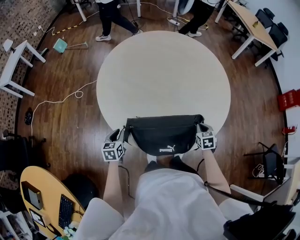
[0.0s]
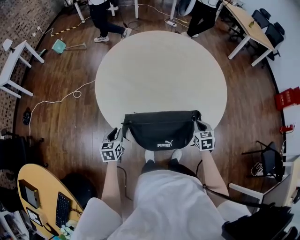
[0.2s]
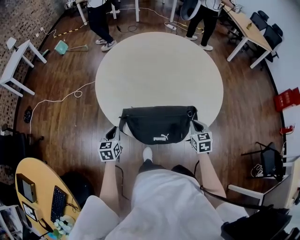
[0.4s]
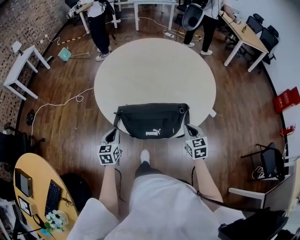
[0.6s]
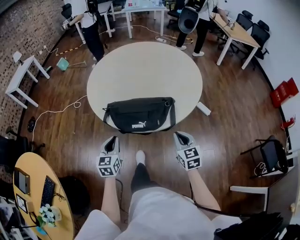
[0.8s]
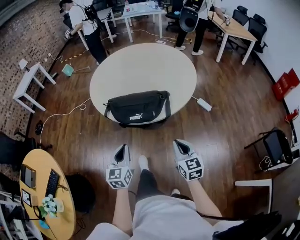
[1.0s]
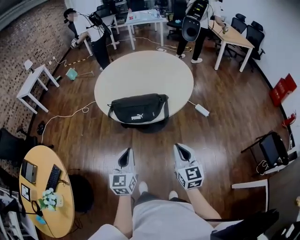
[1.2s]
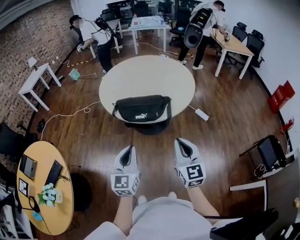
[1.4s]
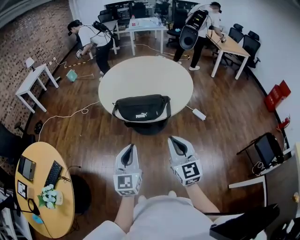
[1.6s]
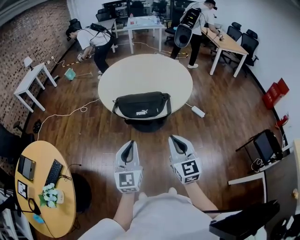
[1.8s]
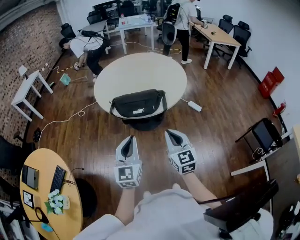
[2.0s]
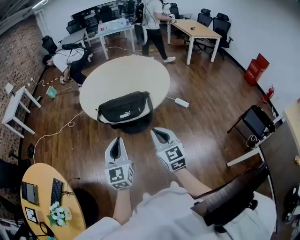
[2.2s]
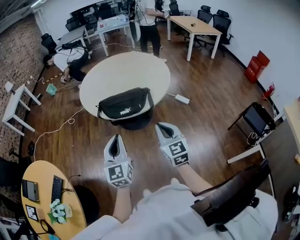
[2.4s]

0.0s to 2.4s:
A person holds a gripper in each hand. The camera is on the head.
0.0s to 1.2s: The pair of grippers is taken backward, roughly 50 cm. Both grippers move upward, roughly 25 cm. The right gripper tilts its fingers about 40 degrees upward. Meanwhile the left gripper changes its angle by roughly 30 degrees.
1.2s to 2.4s: The left gripper moves upward, roughly 10 cm; the right gripper heads to the left and upward, covering some 10 cm.

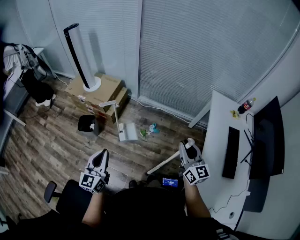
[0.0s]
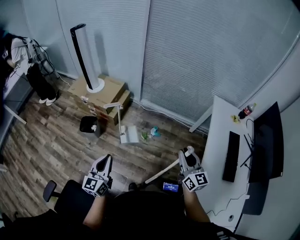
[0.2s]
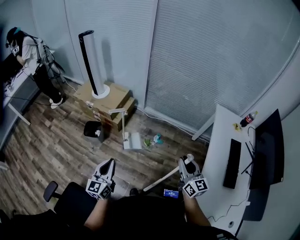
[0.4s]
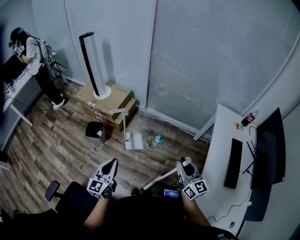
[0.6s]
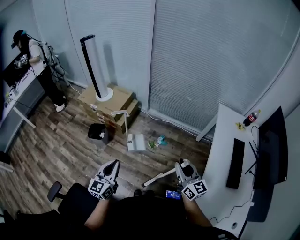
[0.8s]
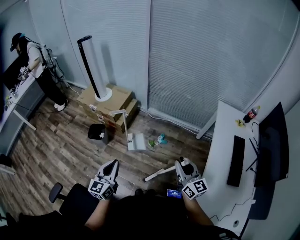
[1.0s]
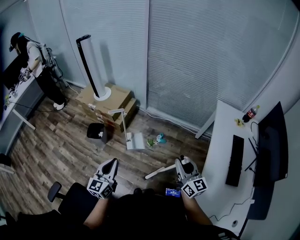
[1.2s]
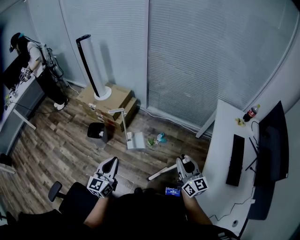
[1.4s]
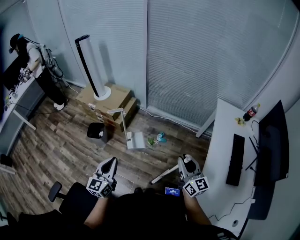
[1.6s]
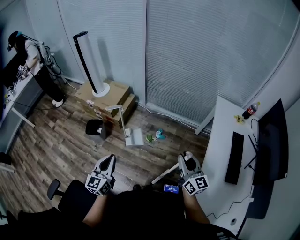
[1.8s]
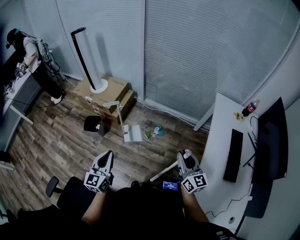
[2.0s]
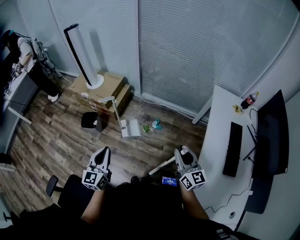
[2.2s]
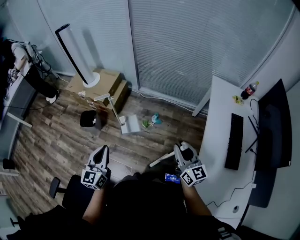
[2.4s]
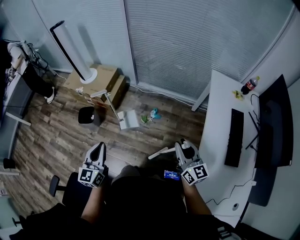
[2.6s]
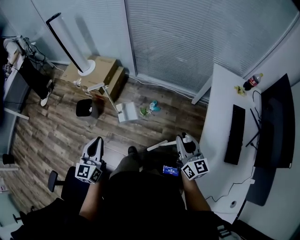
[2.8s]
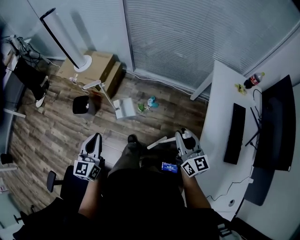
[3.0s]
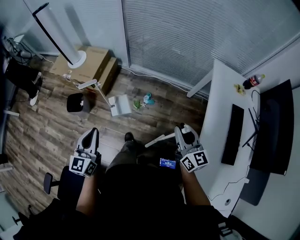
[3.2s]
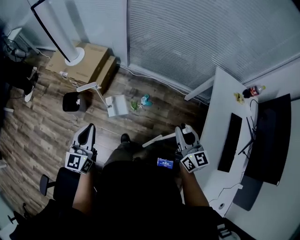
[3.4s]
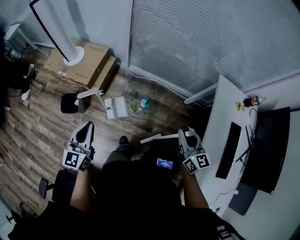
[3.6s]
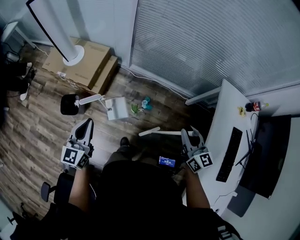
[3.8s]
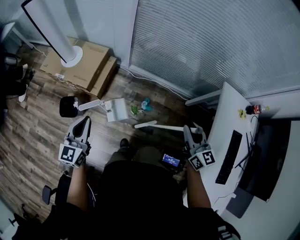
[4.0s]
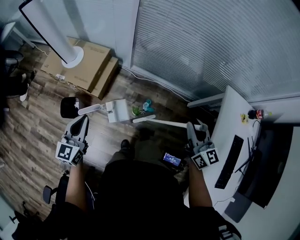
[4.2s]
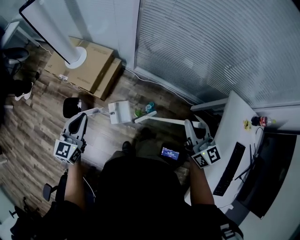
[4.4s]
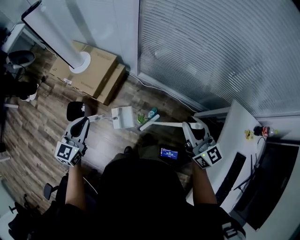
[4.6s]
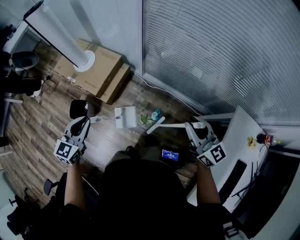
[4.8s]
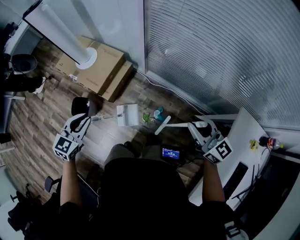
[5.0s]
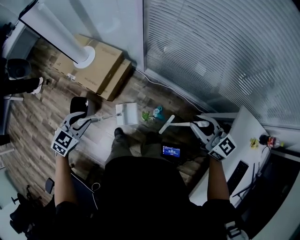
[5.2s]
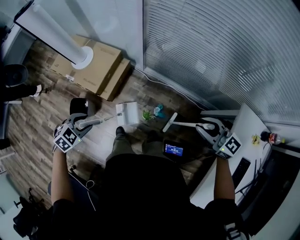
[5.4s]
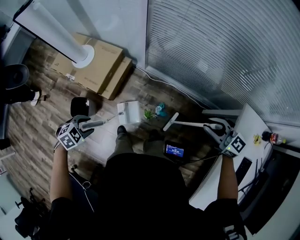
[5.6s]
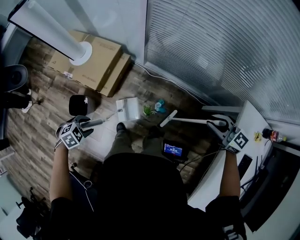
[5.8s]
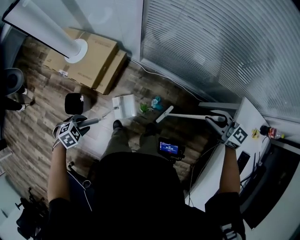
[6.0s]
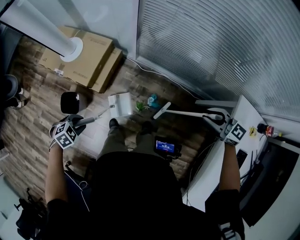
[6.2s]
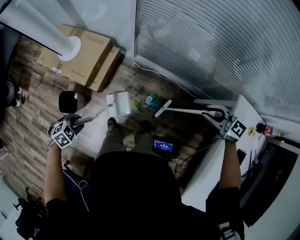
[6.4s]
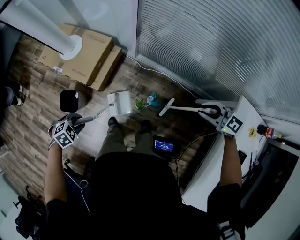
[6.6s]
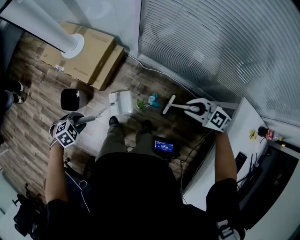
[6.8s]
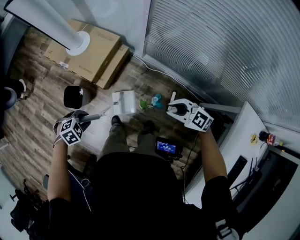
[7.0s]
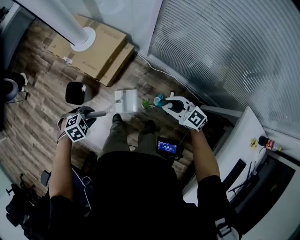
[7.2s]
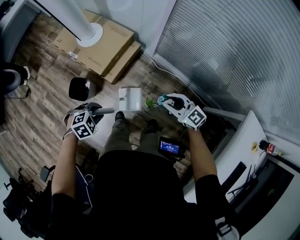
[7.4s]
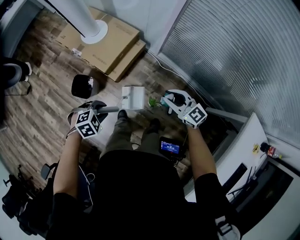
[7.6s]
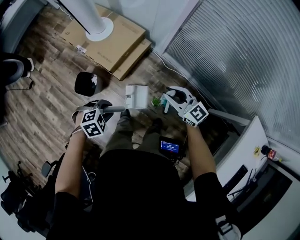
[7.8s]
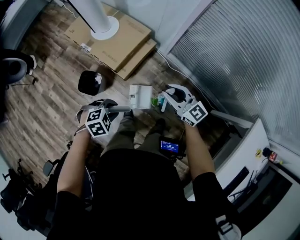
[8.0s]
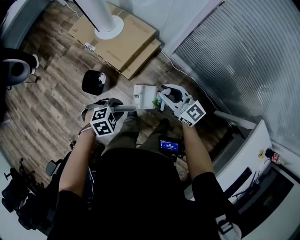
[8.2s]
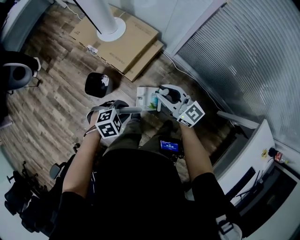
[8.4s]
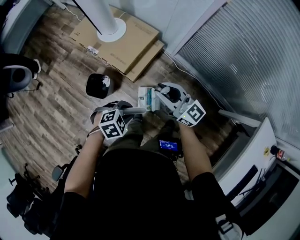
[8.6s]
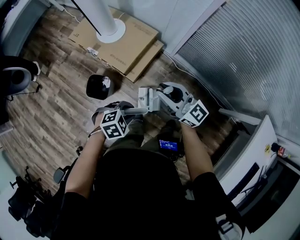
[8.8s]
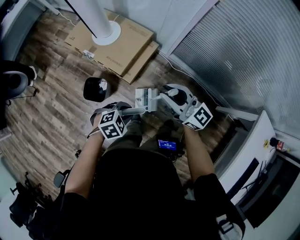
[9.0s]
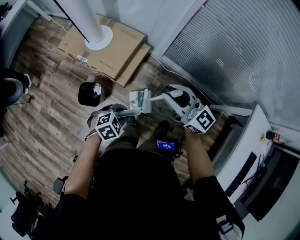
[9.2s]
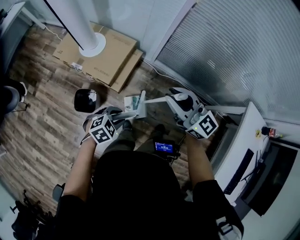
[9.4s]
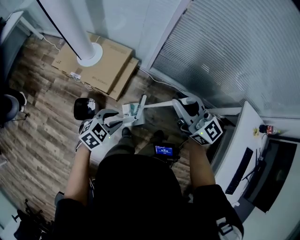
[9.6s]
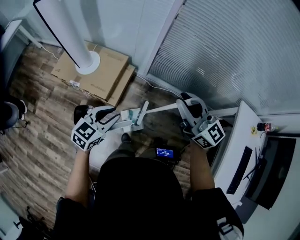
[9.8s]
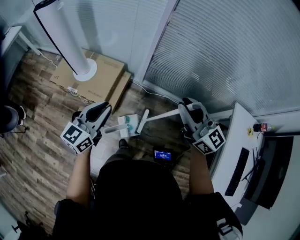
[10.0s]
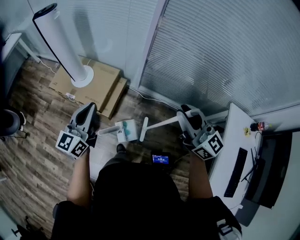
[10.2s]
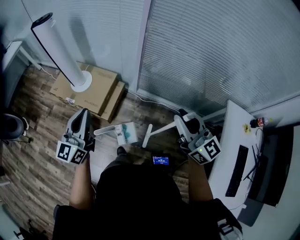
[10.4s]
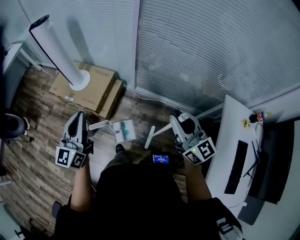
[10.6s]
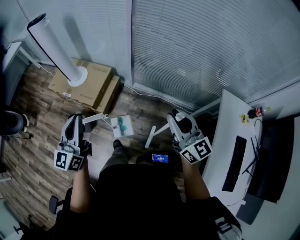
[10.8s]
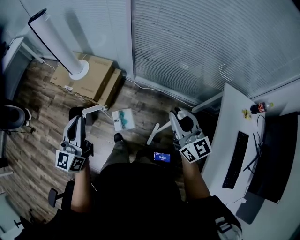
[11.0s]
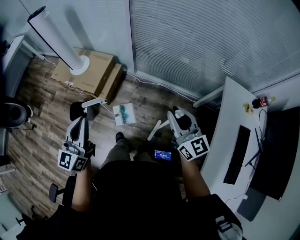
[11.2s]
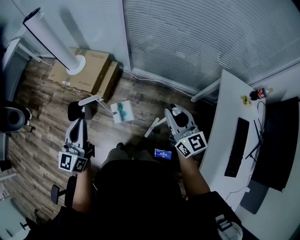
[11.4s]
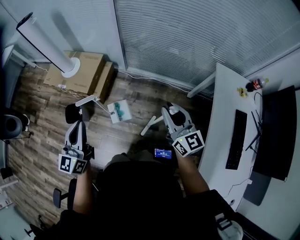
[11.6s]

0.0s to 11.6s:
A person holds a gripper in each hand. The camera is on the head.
0.0s to 1.4s: The right gripper moves backward, about 5 cm.
1.4s to 2.8s: The right gripper heads to the right, covering some 5 cm.
2.8s to 4.4s: The grippers both shift forward by some 35 cm.
4.4s to 5.8s: The right gripper shifts by roughly 15 cm, and turns by about 40 degrees, while the left gripper travels downward by approximately 20 cm, tilts its fingers approximately 60 degrees downward, and opens up.
5.8s to 7.2s: The right gripper shifts by about 25 cm.
7.2s to 8.8s: The right gripper moves roughly 25 cm, and changes its angle by approximately 30 degrees.
8.8s to 10.2s: The two grippers go roughly 25 cm upward. The right gripper changes its angle by about 30 degrees. Meanwhile the left gripper tips its fingers upward by approximately 70 degrees, and closes its fingers.
10.2s to 11.6s: The left gripper shifts some 25 cm backward and to the right. The right gripper goes about 25 cm backward, to the right and downward.

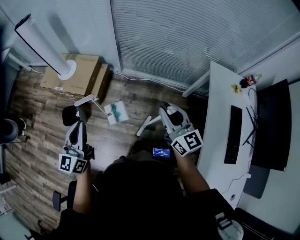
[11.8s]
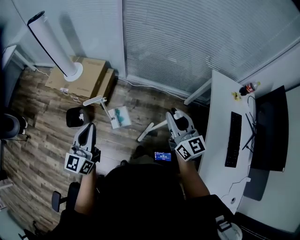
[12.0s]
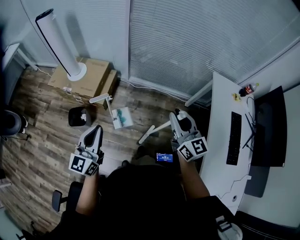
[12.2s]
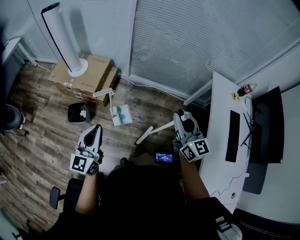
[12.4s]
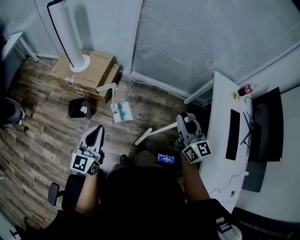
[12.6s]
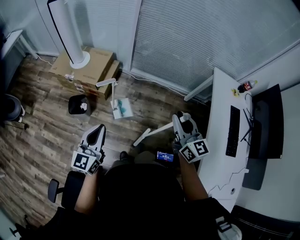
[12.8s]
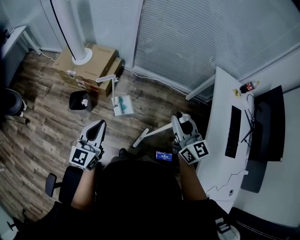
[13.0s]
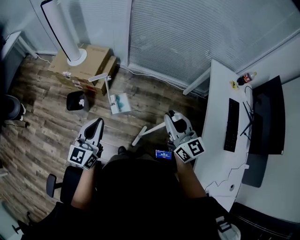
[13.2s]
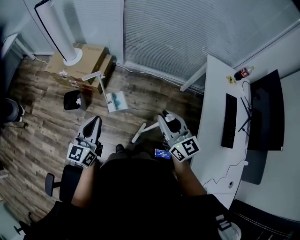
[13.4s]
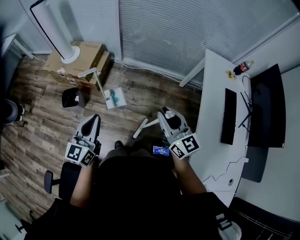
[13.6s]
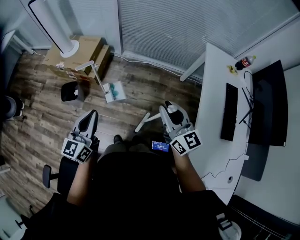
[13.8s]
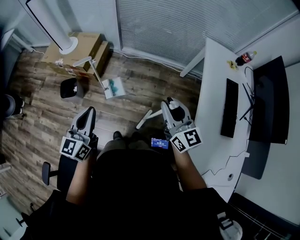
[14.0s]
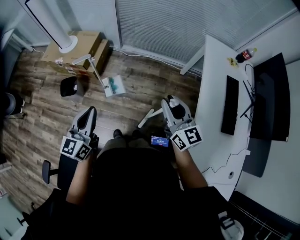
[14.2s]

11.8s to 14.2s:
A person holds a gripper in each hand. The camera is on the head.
11.8s to 13.0s: The right gripper goes about 15 cm backward and to the left. Meanwhile the left gripper travels backward by approximately 15 cm.
13.0s to 14.2s: The left gripper goes some 10 cm to the right, while the right gripper is displaced to the right and backward by some 10 cm.

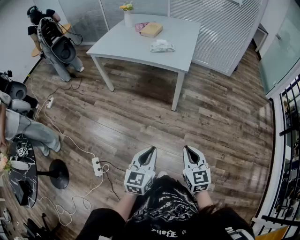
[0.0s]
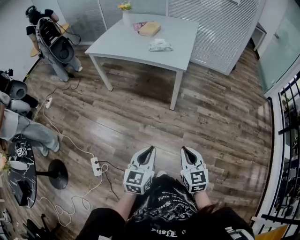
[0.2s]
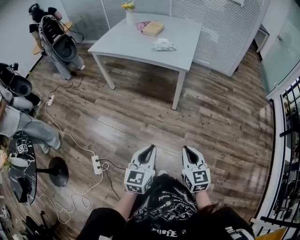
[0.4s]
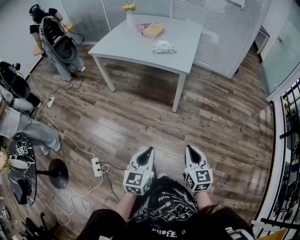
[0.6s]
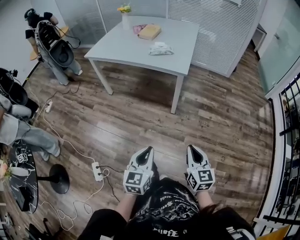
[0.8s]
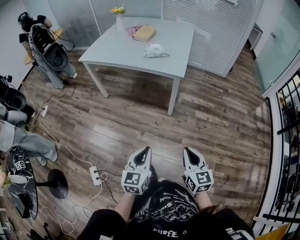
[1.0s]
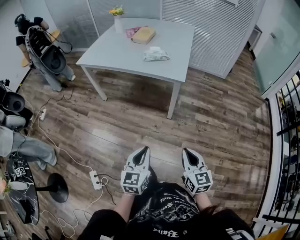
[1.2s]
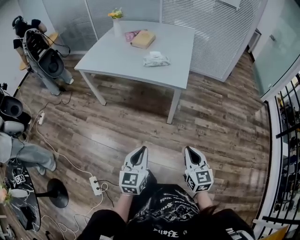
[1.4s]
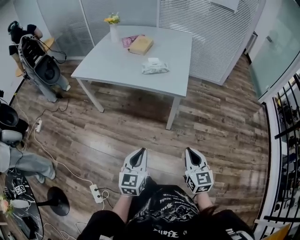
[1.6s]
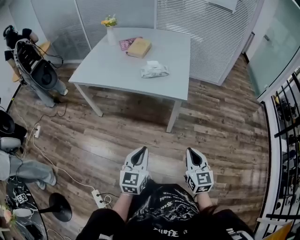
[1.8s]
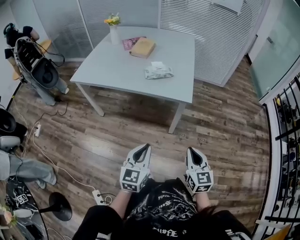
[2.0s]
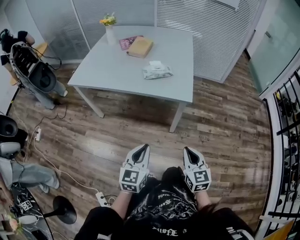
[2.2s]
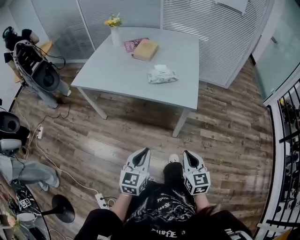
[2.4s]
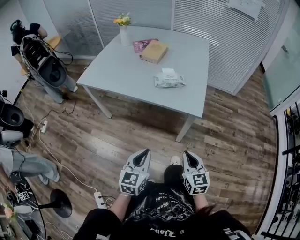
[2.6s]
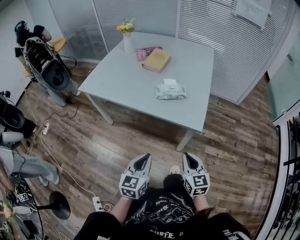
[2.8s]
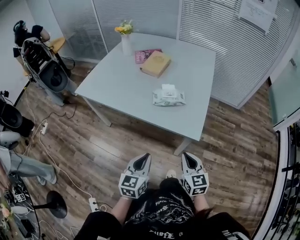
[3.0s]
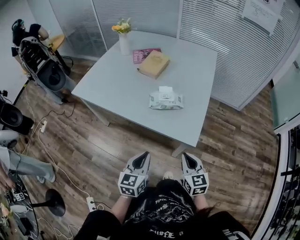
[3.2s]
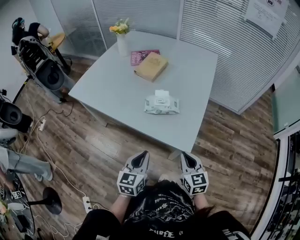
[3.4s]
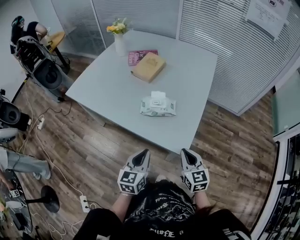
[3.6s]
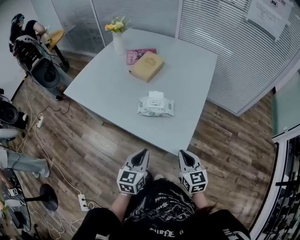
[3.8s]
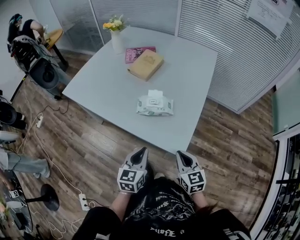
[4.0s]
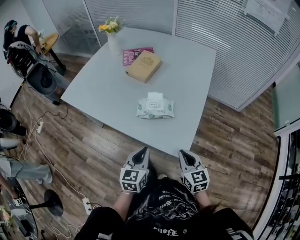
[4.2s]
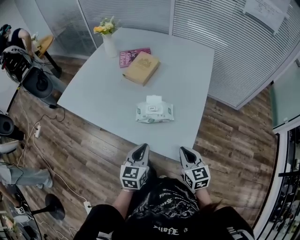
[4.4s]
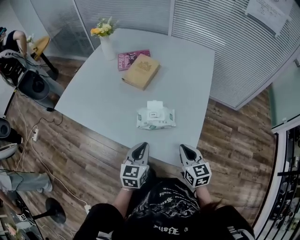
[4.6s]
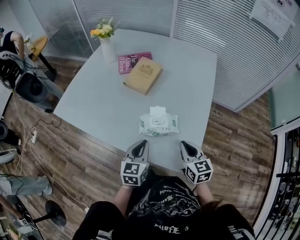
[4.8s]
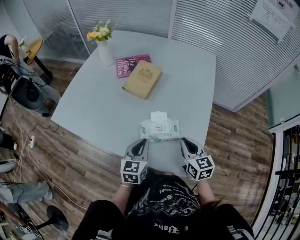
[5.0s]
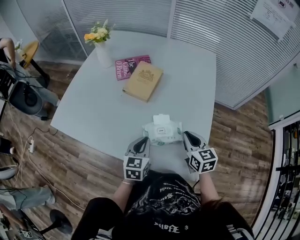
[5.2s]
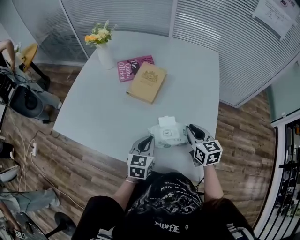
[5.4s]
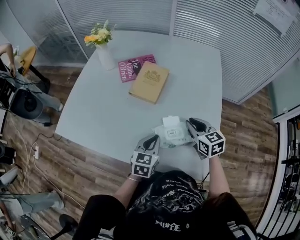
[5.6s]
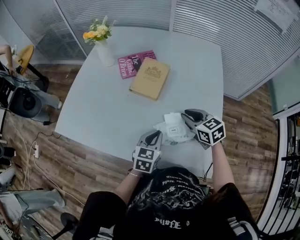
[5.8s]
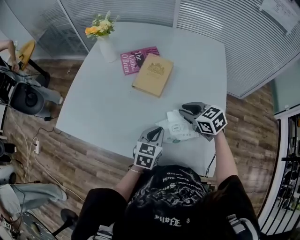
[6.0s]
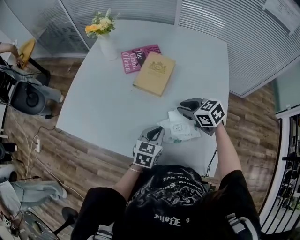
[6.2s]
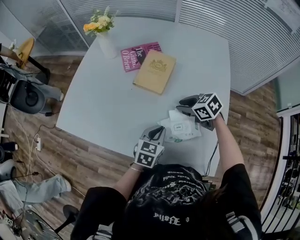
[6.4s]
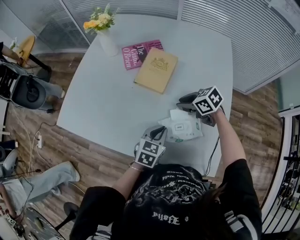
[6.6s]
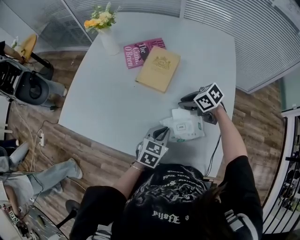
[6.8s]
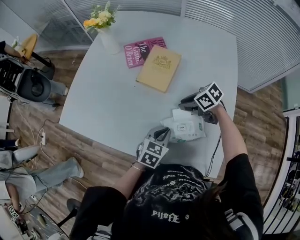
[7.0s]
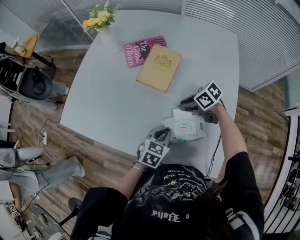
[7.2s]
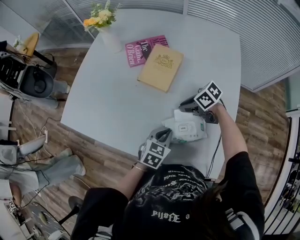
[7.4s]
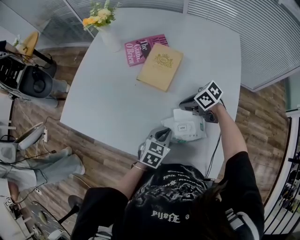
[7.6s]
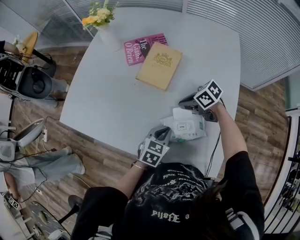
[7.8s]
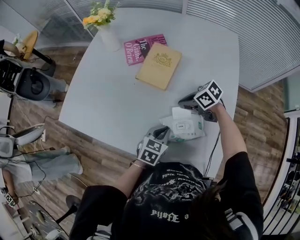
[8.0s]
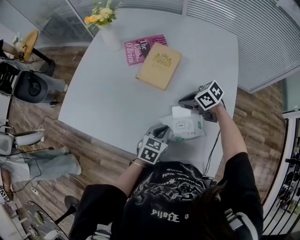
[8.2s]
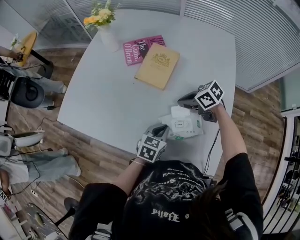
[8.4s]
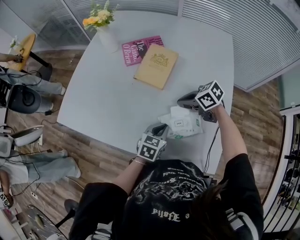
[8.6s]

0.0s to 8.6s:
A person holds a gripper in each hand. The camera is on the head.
0.0s to 1.4s: Both grippers travel together forward, roughly 15 cm.
1.4s to 2.8s: Both grippers move forward, roughly 25 cm.
2.8s to 4.4s: The two grippers go some 25 cm forward and to the right.
4.4s to 5.8s: The two grippers go approximately 25 cm forward.
5.8s to 7.2s: The right gripper goes about 10 cm downward, and rotates about 40 degrees.
7.2s to 8.6s: The right gripper closes up.
